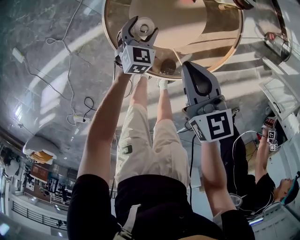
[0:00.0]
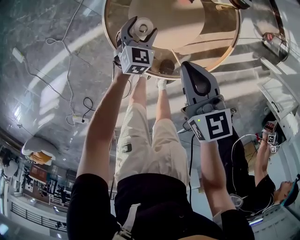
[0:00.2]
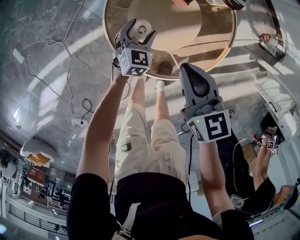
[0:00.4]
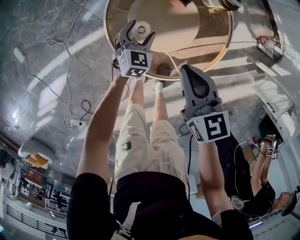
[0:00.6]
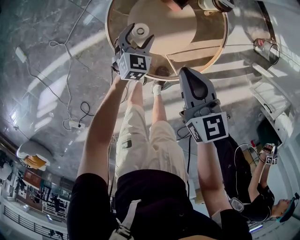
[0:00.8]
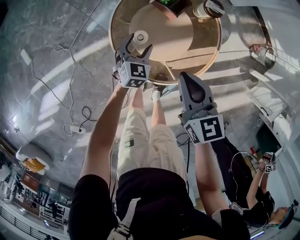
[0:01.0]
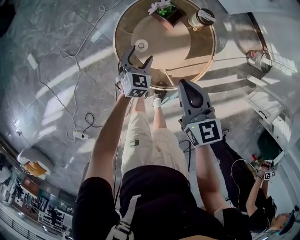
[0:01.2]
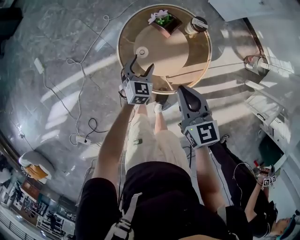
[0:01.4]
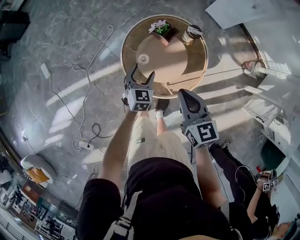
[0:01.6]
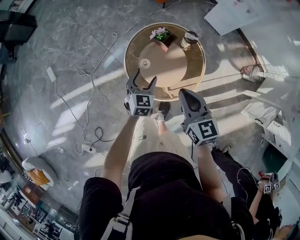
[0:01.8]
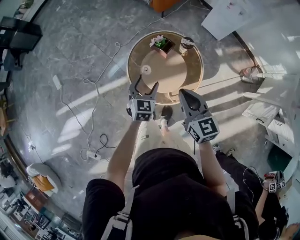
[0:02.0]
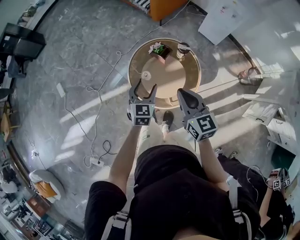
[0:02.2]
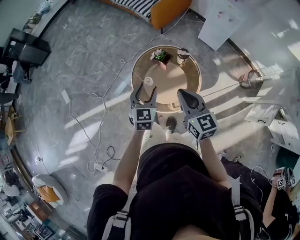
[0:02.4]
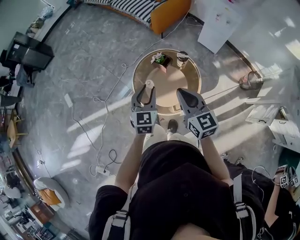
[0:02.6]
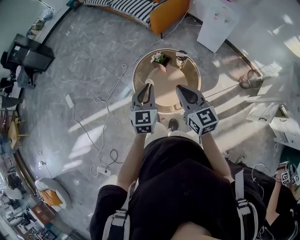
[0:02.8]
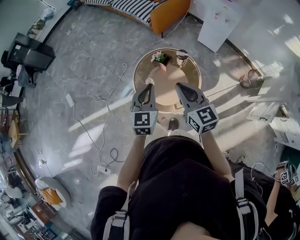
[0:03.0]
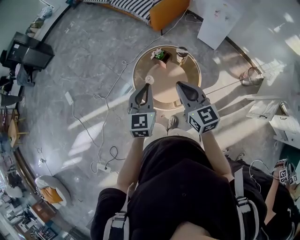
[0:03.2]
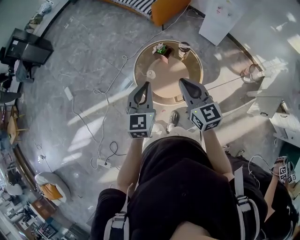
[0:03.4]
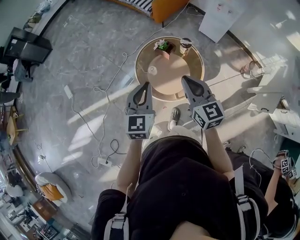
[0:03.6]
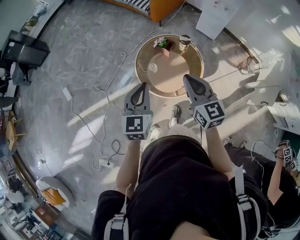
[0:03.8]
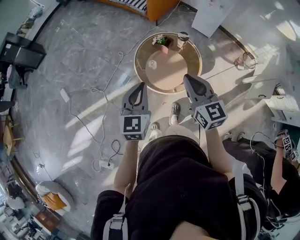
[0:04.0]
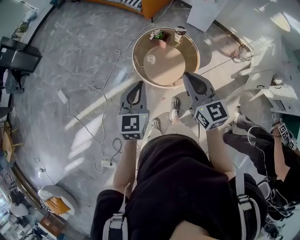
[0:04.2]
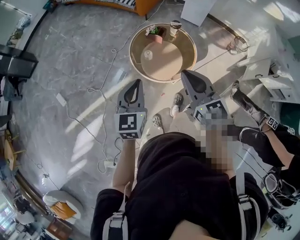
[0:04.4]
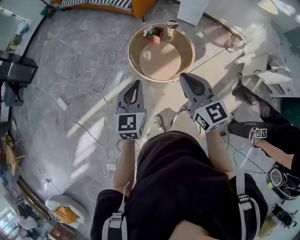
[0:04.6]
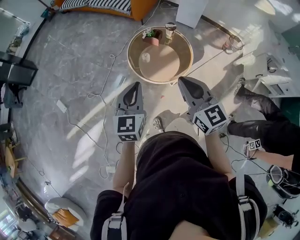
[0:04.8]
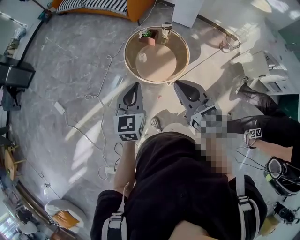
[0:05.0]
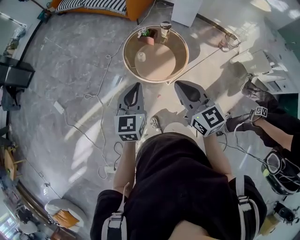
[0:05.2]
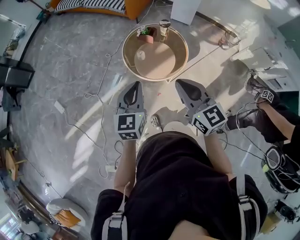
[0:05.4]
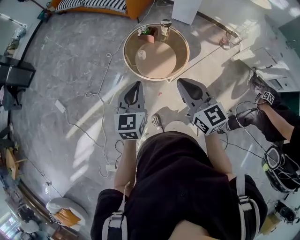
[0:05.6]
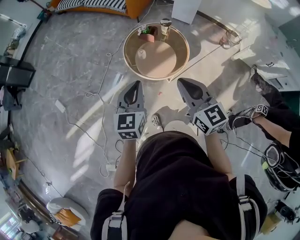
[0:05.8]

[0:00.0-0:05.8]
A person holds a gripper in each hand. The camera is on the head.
0:00.0 to 0:01.4: The two grippers go some 20 cm upward.
0:01.4 to 0:02.8: The right gripper shifts some 20 cm upward; the left gripper moves upward, some 35 cm, turns by roughly 20 degrees, and closes up.
0:02.8 to 0:04.4: The right gripper shifts about 20 cm backward and to the left. Meanwhile the left gripper moves to the left and backward, approximately 25 cm.
0:04.4 to 0:05.8: The left gripper is displaced backward by roughly 5 cm, while the right gripper heads backward, covering some 10 cm.

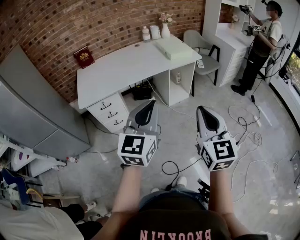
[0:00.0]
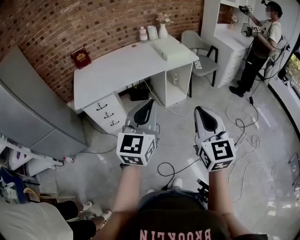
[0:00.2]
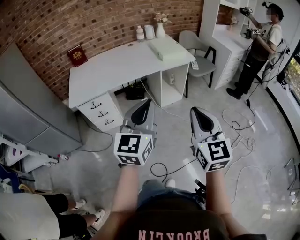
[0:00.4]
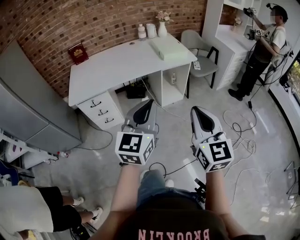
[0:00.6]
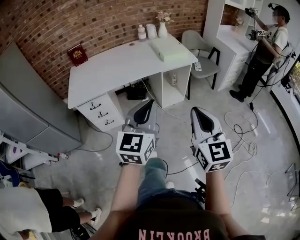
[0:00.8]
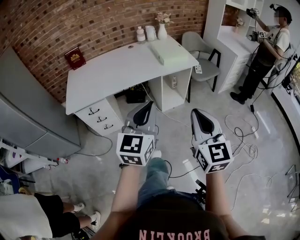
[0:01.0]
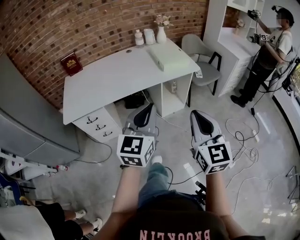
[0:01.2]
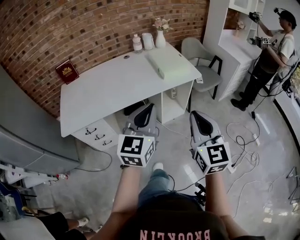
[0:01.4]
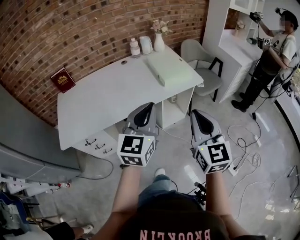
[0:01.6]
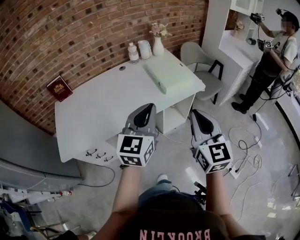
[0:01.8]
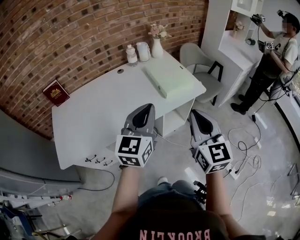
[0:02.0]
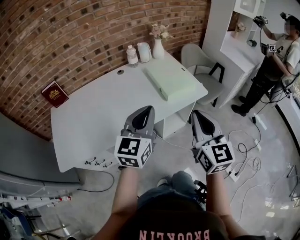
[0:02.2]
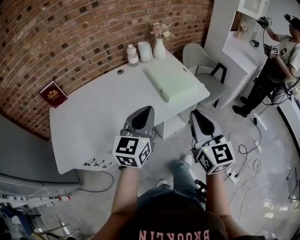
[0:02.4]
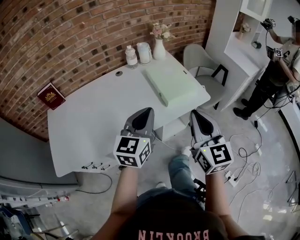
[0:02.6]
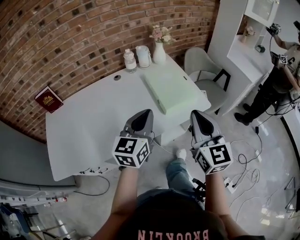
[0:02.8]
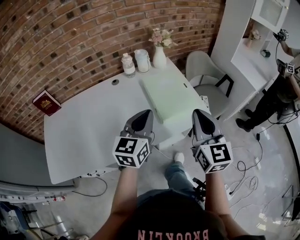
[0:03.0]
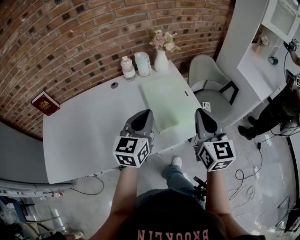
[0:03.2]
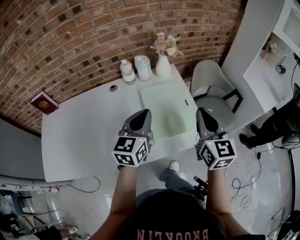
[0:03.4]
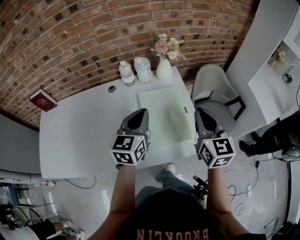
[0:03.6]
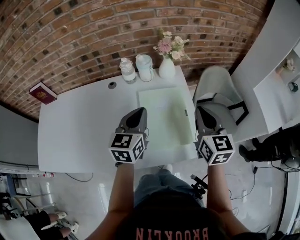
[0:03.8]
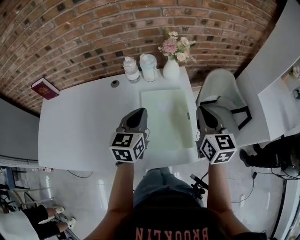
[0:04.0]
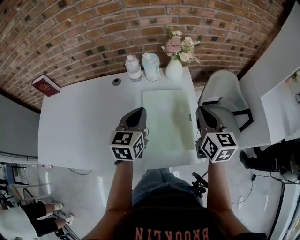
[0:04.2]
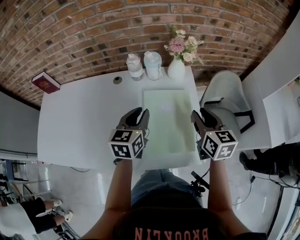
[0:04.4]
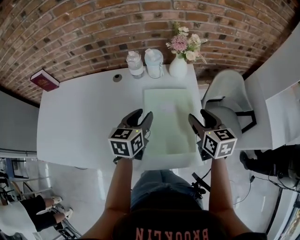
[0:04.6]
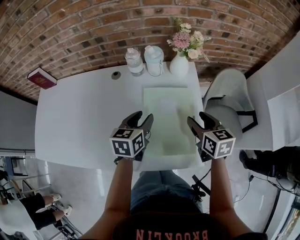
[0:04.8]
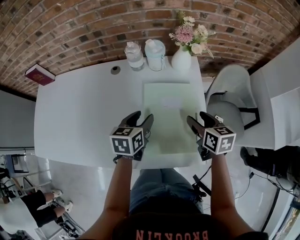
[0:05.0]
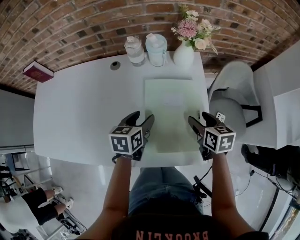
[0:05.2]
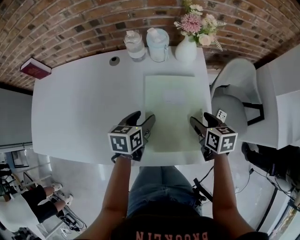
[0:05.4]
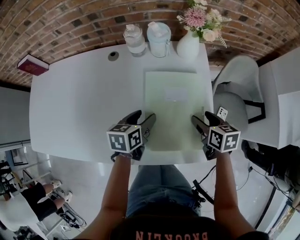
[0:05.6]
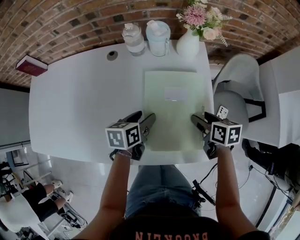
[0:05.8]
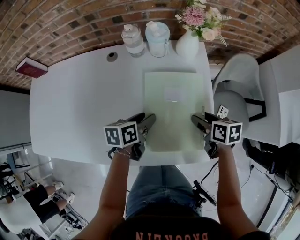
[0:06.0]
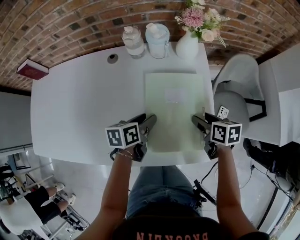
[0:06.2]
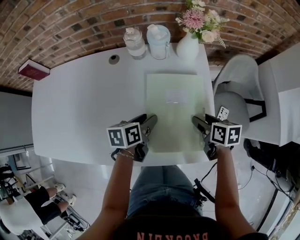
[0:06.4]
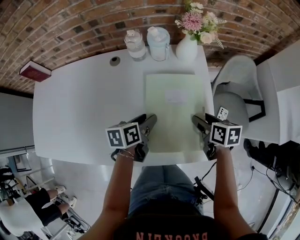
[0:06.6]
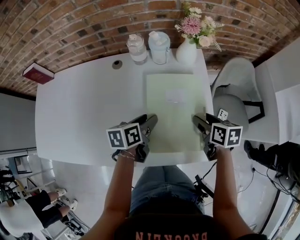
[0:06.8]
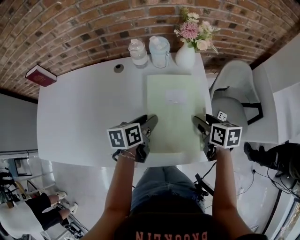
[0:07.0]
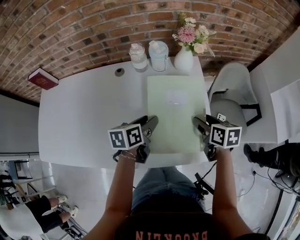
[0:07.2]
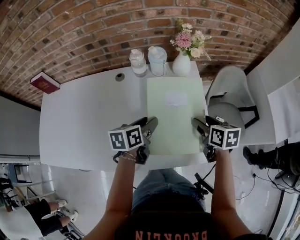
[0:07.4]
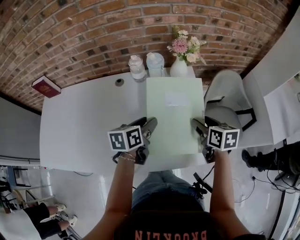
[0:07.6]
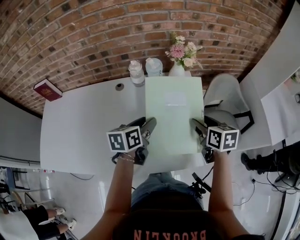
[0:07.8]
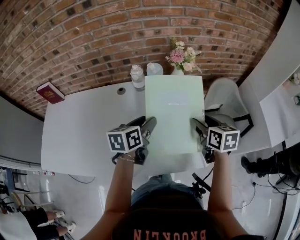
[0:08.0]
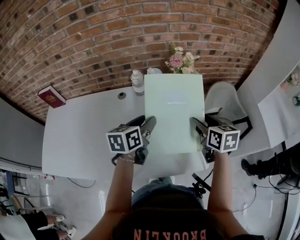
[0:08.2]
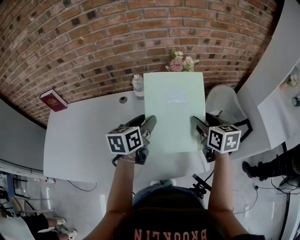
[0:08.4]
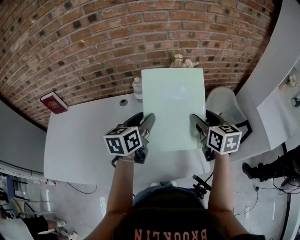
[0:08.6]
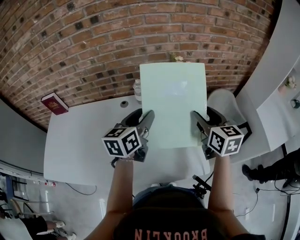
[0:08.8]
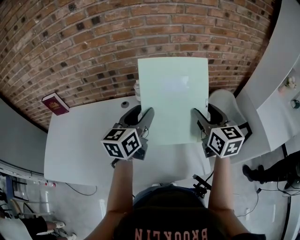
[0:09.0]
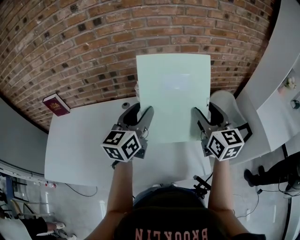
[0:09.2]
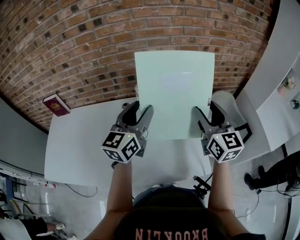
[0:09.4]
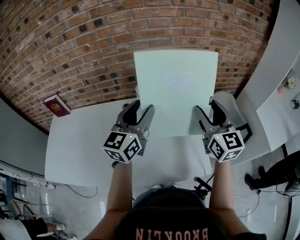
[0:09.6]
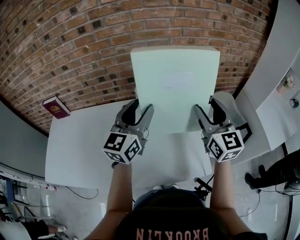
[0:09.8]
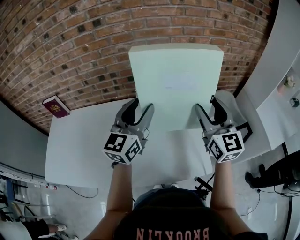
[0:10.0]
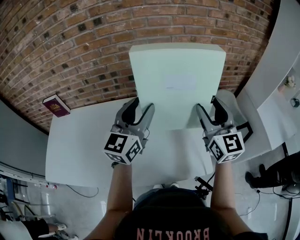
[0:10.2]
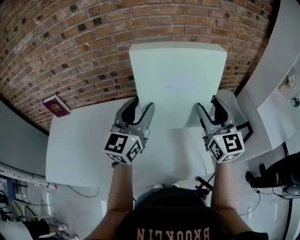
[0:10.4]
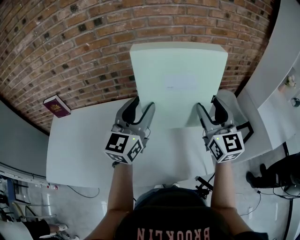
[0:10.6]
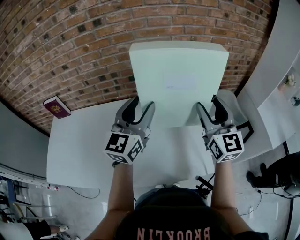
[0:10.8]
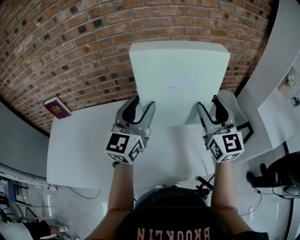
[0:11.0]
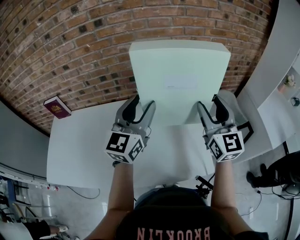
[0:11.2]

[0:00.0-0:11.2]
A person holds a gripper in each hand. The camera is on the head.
0:00.0 to 0:01.6: The two grippers go approximately 35 cm forward.
0:01.6 to 0:03.2: Both grippers travel together forward, approximately 40 cm.
0:03.2 to 0:04.8: The grippers both shift forward and downward by some 25 cm. The left gripper rotates approximately 30 degrees, and opens its fingers; the right gripper rotates approximately 40 degrees, and opens up.
0:04.8 to 0:06.4: The two grippers go roughly 10 cm downward. The right gripper swivels about 30 degrees, while the left gripper rotates approximately 30 degrees.
0:06.4 to 0:08.0: Both grippers move upward, about 15 cm. The right gripper turns by about 20 degrees.
0:08.0 to 0:09.6: Both grippers move upward, some 15 cm. The right gripper angles its fingers upward, by about 40 degrees. Meanwhile the left gripper tilts its fingers roughly 30 degrees upward.
0:09.6 to 0:11.2: The grippers move only a little.

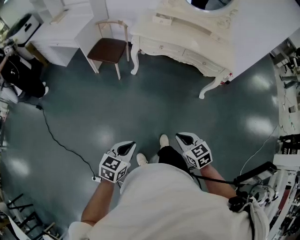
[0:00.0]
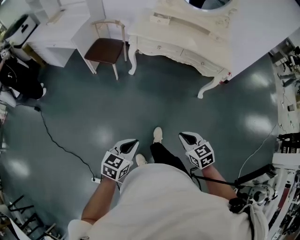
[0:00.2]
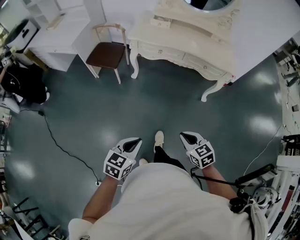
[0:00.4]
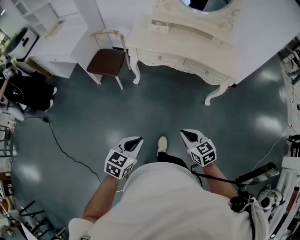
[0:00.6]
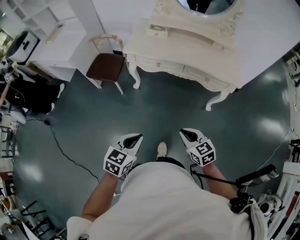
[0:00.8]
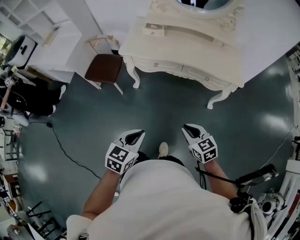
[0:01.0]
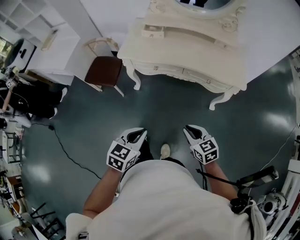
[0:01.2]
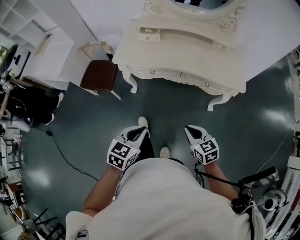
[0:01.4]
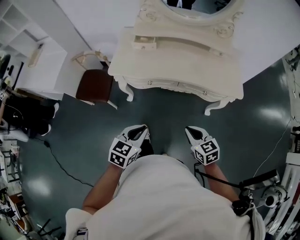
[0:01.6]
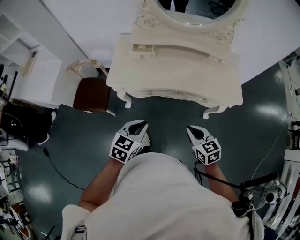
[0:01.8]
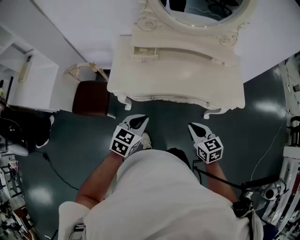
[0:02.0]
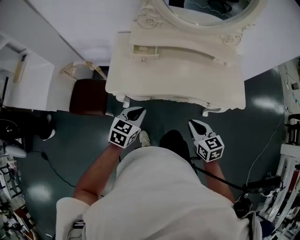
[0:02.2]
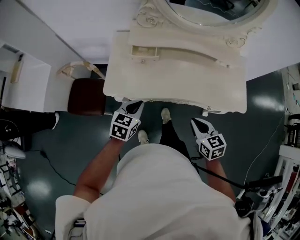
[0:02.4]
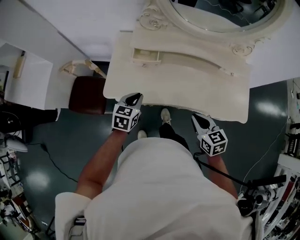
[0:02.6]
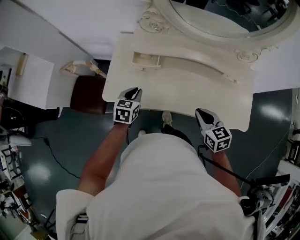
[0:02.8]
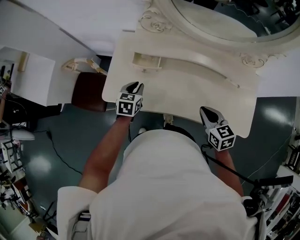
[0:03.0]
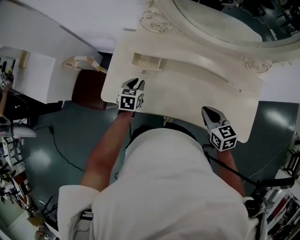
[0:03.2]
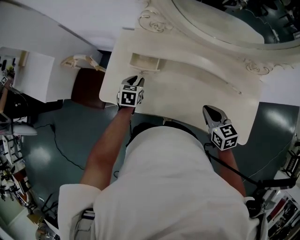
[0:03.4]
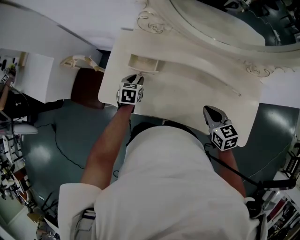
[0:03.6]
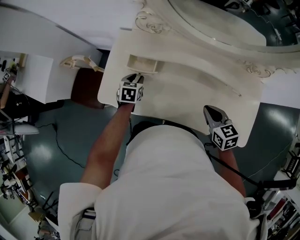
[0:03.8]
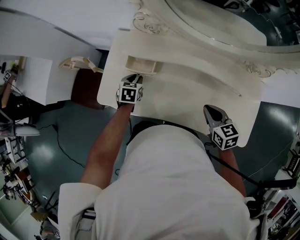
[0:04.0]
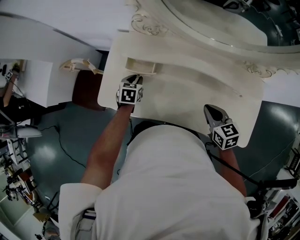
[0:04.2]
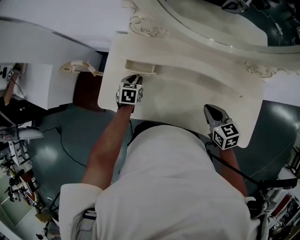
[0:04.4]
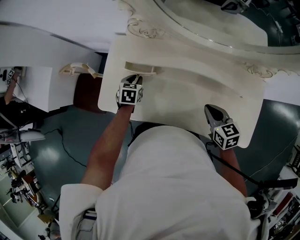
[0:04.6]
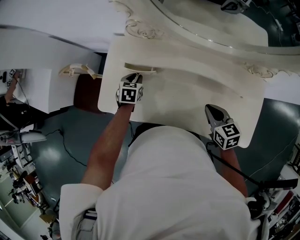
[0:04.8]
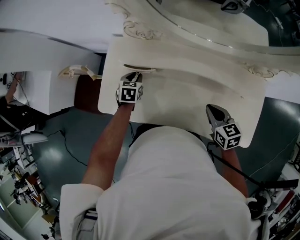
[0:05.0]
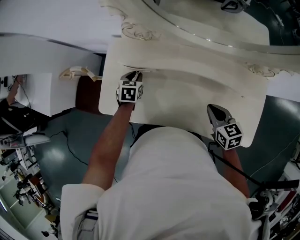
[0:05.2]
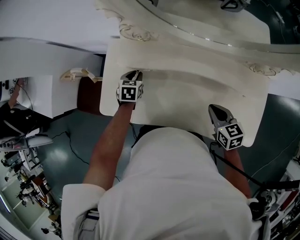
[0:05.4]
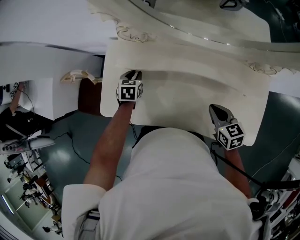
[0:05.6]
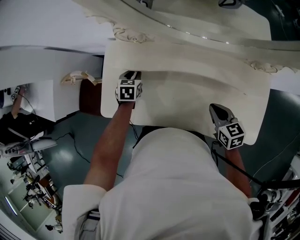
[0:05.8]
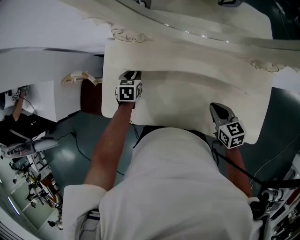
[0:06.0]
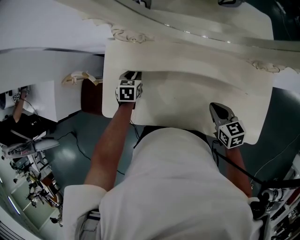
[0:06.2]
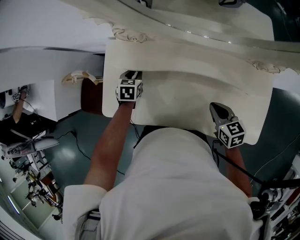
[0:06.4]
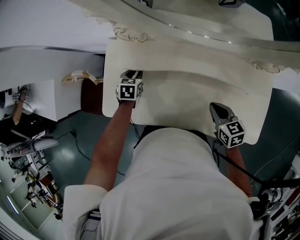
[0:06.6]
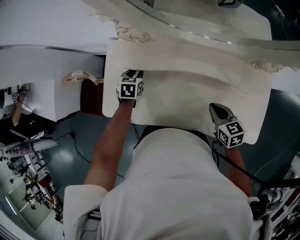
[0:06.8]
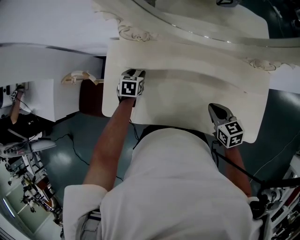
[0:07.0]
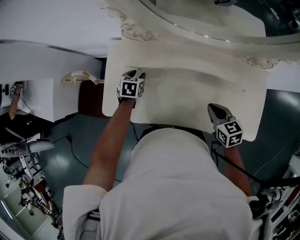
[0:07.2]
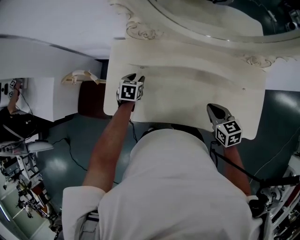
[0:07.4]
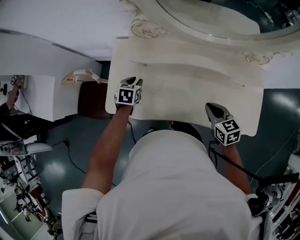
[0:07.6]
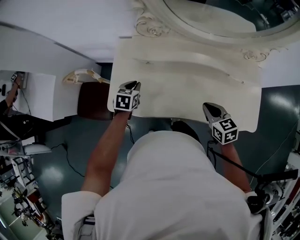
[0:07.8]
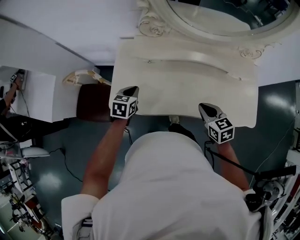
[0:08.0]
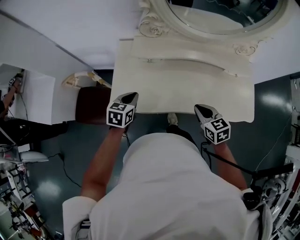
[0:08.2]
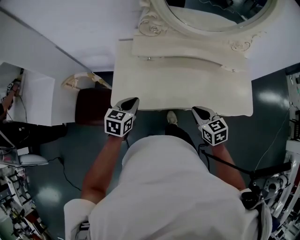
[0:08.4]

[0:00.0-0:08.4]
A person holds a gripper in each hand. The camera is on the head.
0:00.0 to 0:01.4: The two grippers go about 40 cm forward.
0:01.4 to 0:02.8: The pair of grippers is taken forward, some 50 cm.
0:02.8 to 0:04.2: The left gripper goes approximately 15 cm forward and downward. The right gripper goes about 15 cm forward and to the right.
0:04.2 to 0:05.6: The right gripper moves some 5 cm; the left gripper is displaced forward by roughly 5 cm.
0:05.6 to 0:07.0: There are only small adjustments of the grippers.
0:07.0 to 0:08.4: The right gripper shifts about 25 cm to the left and backward; the left gripper shifts some 30 cm backward, upward and to the left, changes its angle by about 30 degrees, and closes up.
